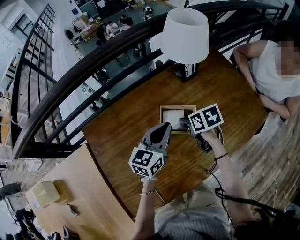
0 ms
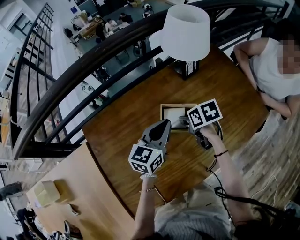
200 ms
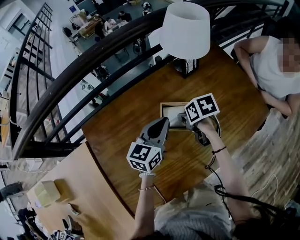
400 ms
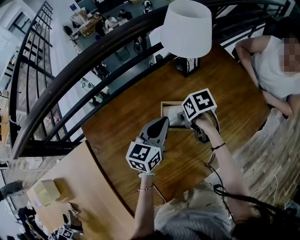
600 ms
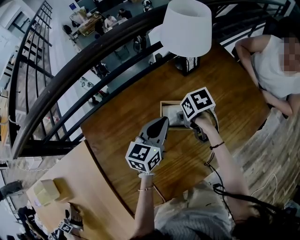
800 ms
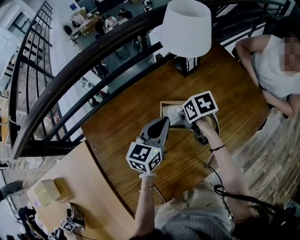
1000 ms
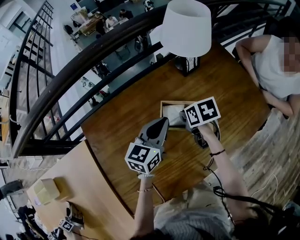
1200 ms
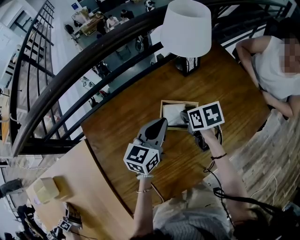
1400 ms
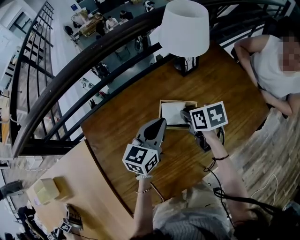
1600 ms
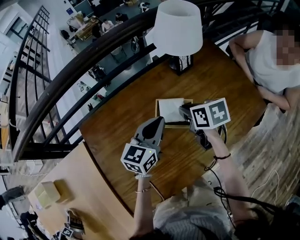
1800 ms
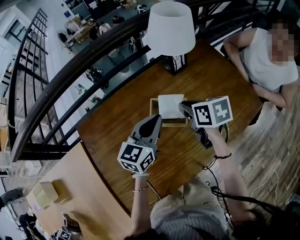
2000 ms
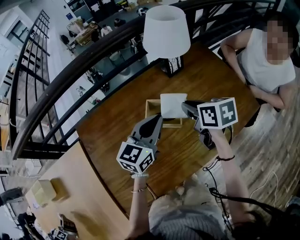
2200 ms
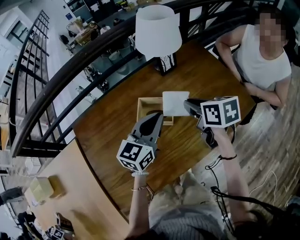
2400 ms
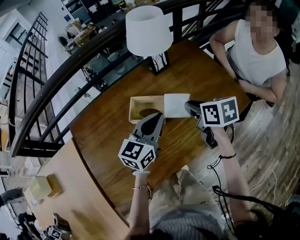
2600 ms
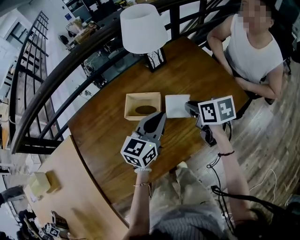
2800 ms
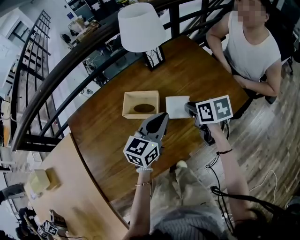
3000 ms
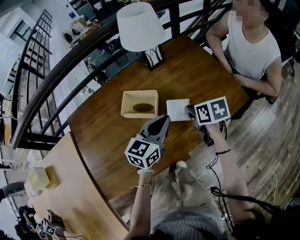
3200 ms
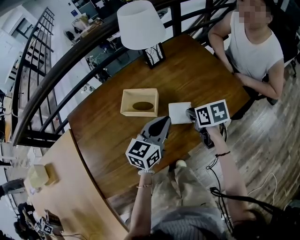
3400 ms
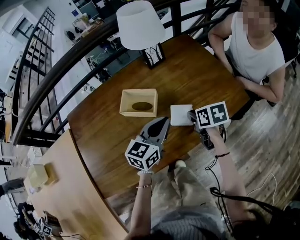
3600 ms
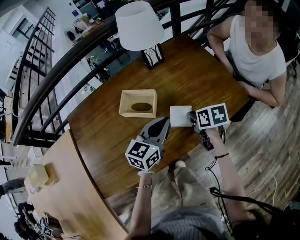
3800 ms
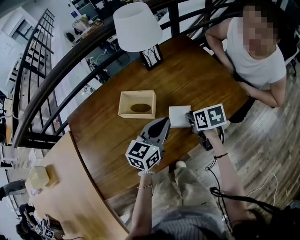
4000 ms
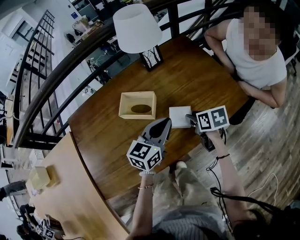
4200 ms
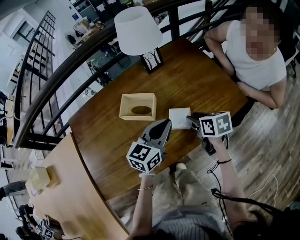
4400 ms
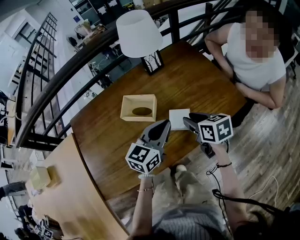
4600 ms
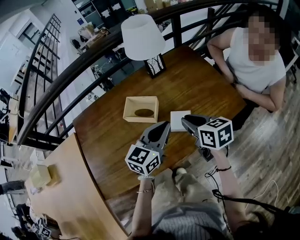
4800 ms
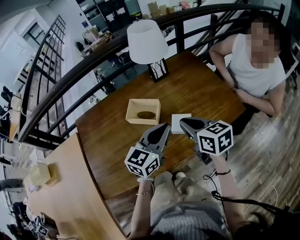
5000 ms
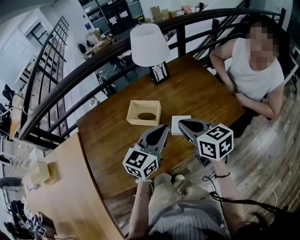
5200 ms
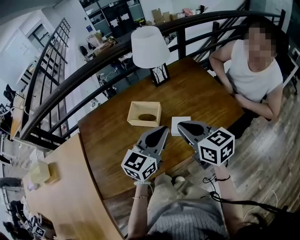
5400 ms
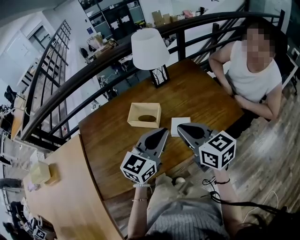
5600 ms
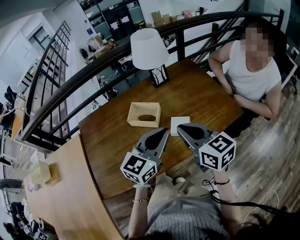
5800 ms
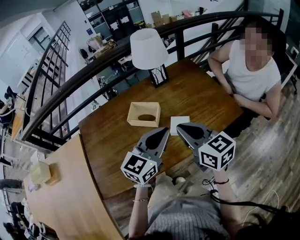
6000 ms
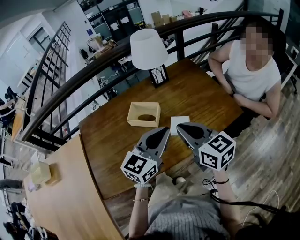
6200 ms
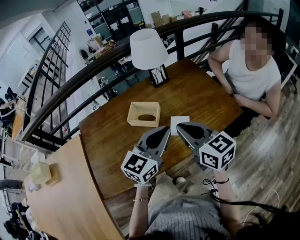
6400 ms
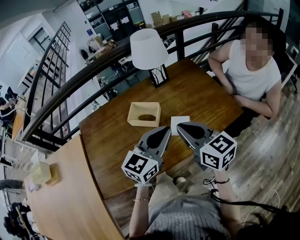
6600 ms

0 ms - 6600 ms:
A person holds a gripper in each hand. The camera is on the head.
0 ms - 1600 ms: The right gripper closes.
1600 ms - 3200 ms: Both grippers move to the right and backward, roughly 20 cm.
3200 ms - 5000 ms: The right gripper moves upward, about 10 cm, swivels approximately 30 degrees, and opens, then closes again; the left gripper shifts by some 5 cm.
5000 ms - 6600 ms: The left gripper shifts approximately 5 cm upward. The right gripper moves upward and backward, approximately 10 cm.

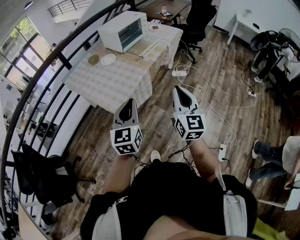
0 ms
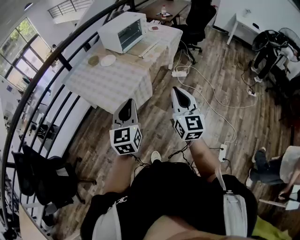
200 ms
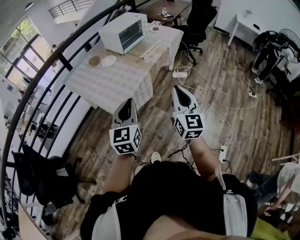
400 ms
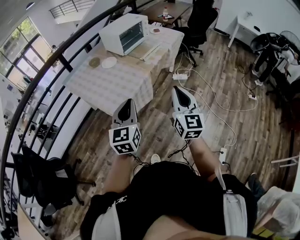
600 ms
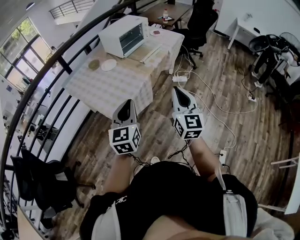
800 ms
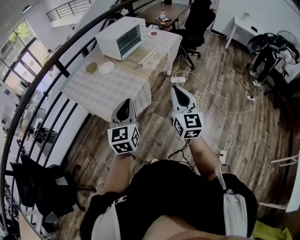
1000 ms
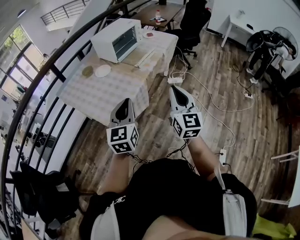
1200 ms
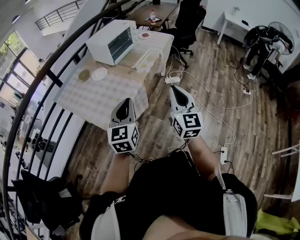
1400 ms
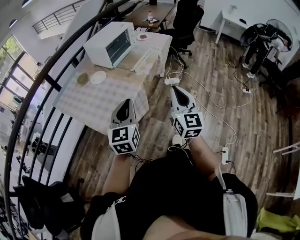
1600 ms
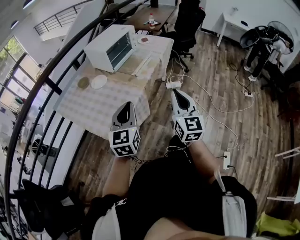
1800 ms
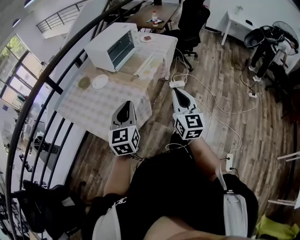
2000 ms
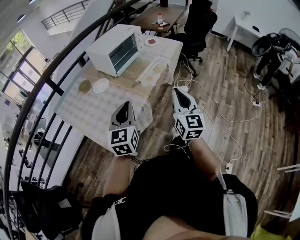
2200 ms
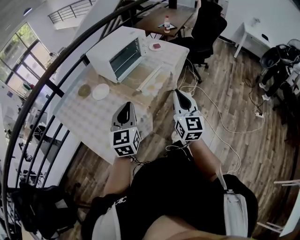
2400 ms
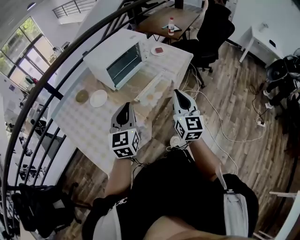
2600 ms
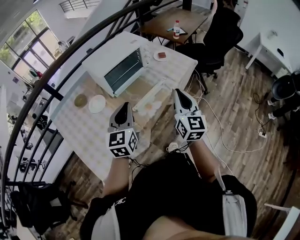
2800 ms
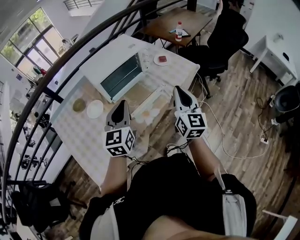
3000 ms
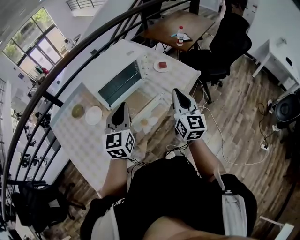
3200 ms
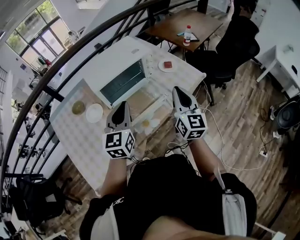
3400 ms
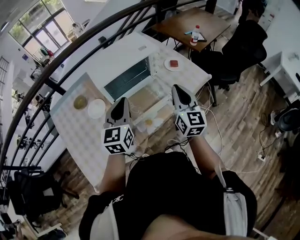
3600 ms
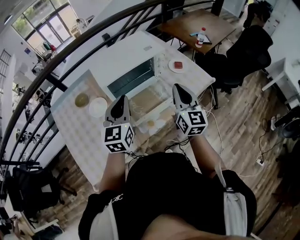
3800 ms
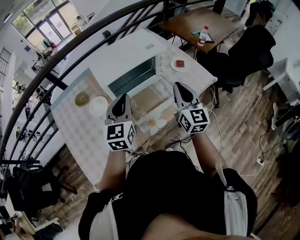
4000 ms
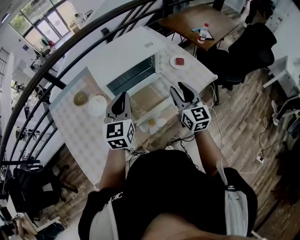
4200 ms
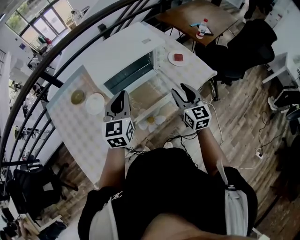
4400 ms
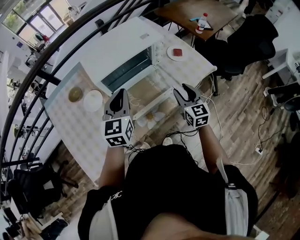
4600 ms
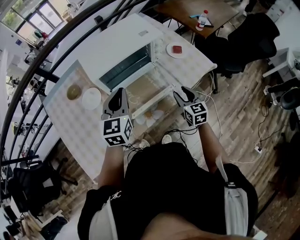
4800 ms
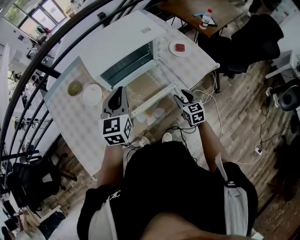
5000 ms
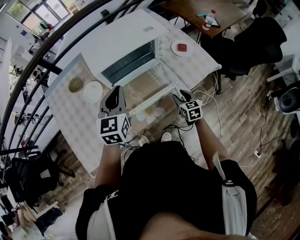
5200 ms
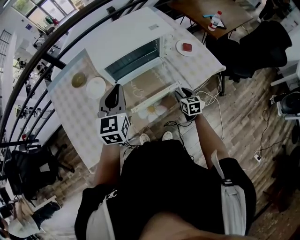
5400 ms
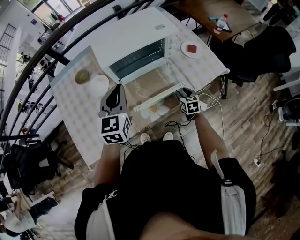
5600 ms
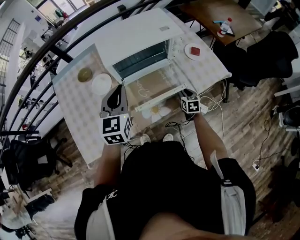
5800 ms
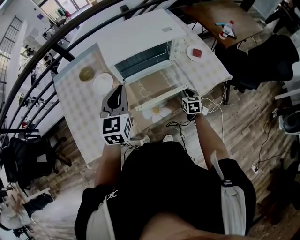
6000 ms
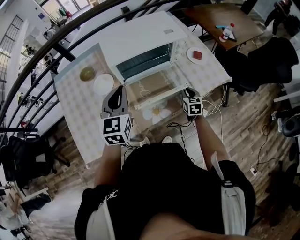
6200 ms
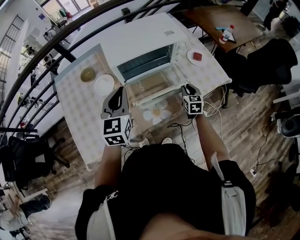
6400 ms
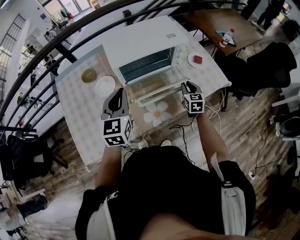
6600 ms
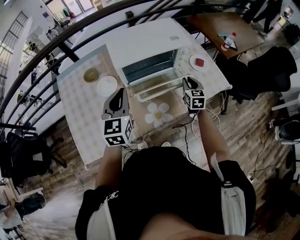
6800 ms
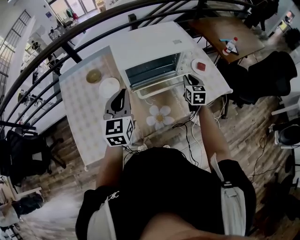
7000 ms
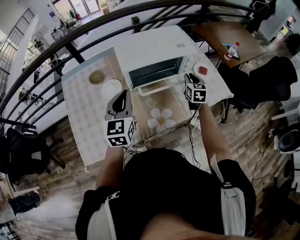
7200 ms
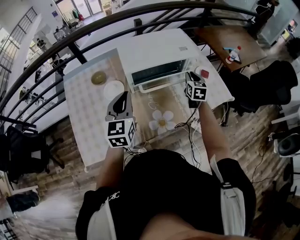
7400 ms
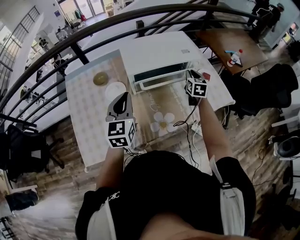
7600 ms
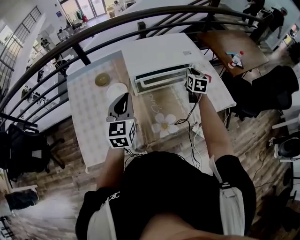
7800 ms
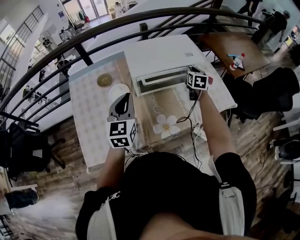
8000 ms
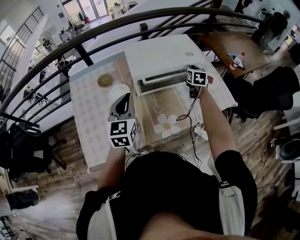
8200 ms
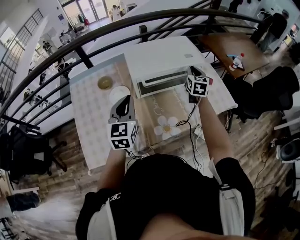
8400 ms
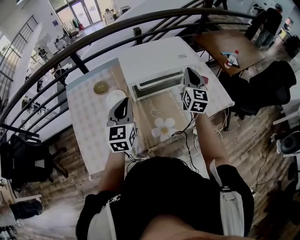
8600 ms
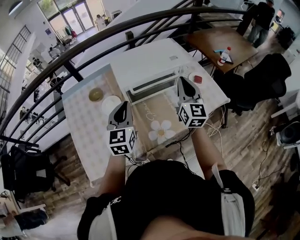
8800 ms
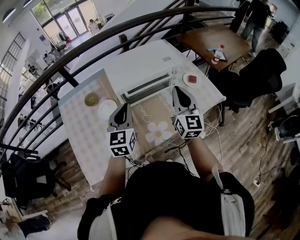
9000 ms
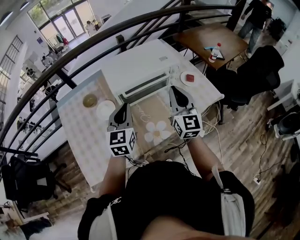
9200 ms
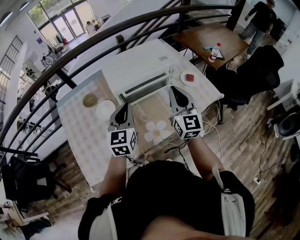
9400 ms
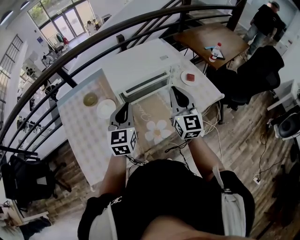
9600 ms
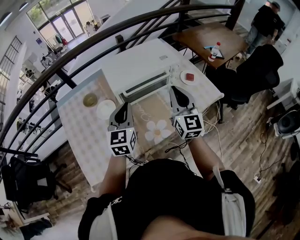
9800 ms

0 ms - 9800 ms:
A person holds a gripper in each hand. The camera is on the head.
0 ms - 1400 ms: The grippers both shift forward by approximately 10 cm.
1400 ms - 2800 ms: Both grippers travel together forward, approximately 40 cm.
2800 ms - 4200 ms: Both grippers move forward, approximately 20 cm. The right gripper rotates roughly 20 degrees, and opens up.
4200 ms - 5600 ms: The right gripper shifts some 30 cm downward, and tips its fingers downward by about 40 degrees.
5600 ms - 7000 ms: The right gripper heads upward and forward, covering roughly 20 cm, and closes, while the left gripper ends up some 5 cm from where it was.
7000 ms - 8400 ms: The right gripper goes about 10 cm upward and forward.
8400 ms - 9800 ms: The right gripper is displaced backward and upward by approximately 20 cm, and changes its angle by roughly 30 degrees. Meanwhile the left gripper travels to the right by some 5 cm.

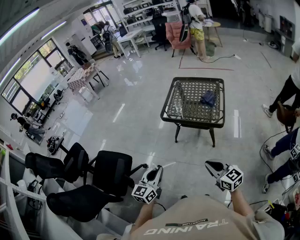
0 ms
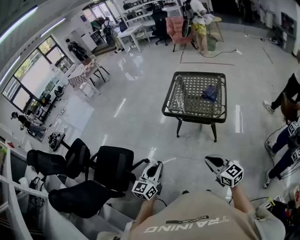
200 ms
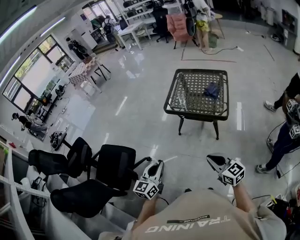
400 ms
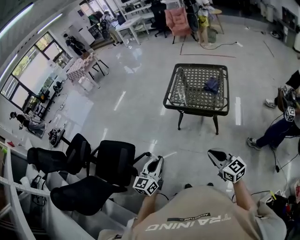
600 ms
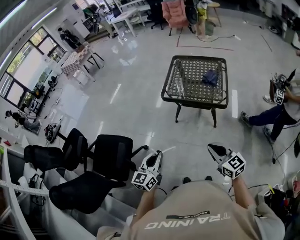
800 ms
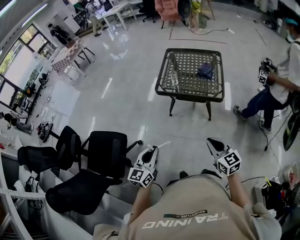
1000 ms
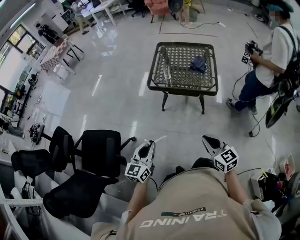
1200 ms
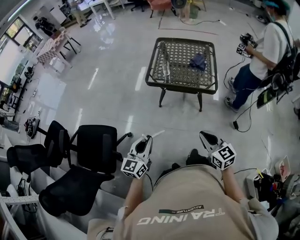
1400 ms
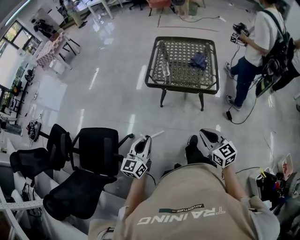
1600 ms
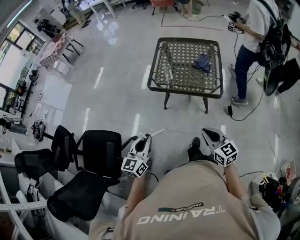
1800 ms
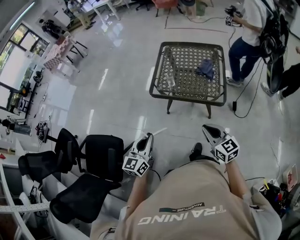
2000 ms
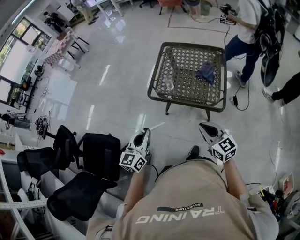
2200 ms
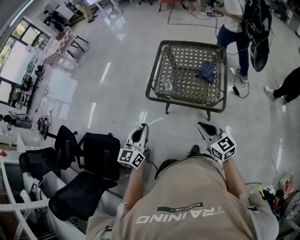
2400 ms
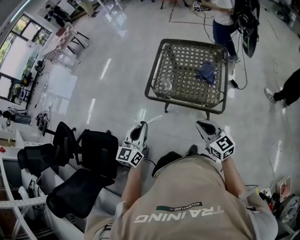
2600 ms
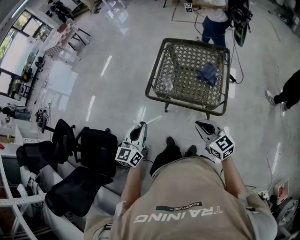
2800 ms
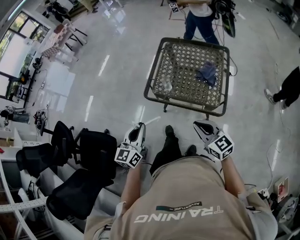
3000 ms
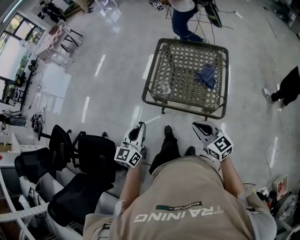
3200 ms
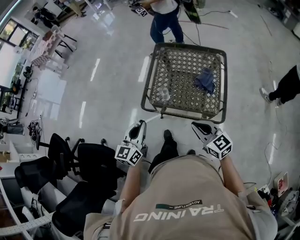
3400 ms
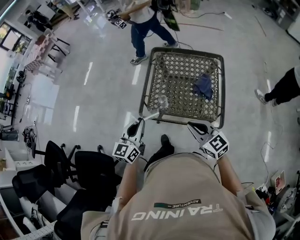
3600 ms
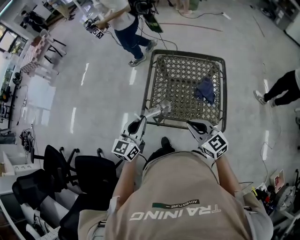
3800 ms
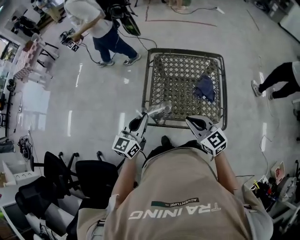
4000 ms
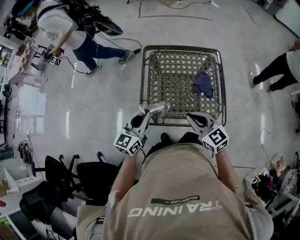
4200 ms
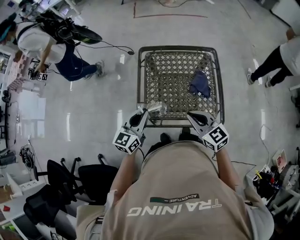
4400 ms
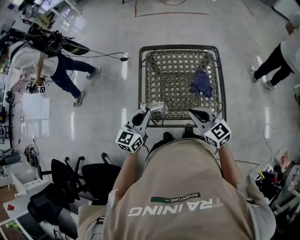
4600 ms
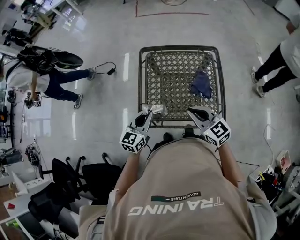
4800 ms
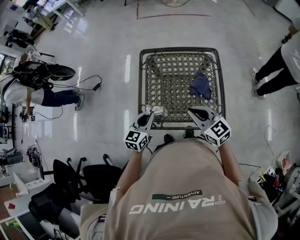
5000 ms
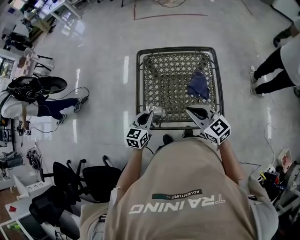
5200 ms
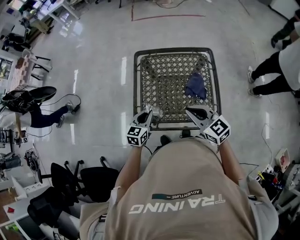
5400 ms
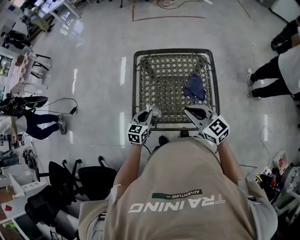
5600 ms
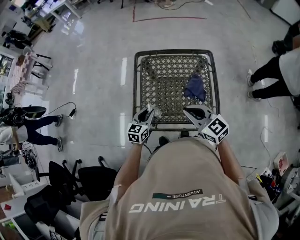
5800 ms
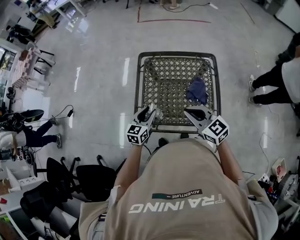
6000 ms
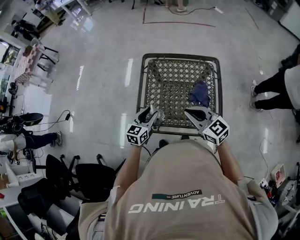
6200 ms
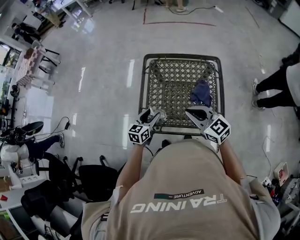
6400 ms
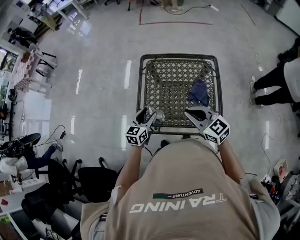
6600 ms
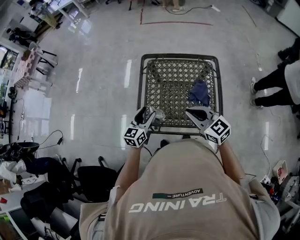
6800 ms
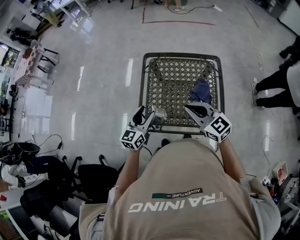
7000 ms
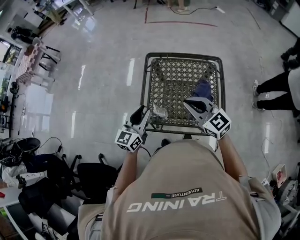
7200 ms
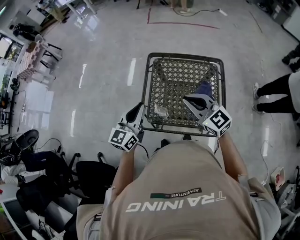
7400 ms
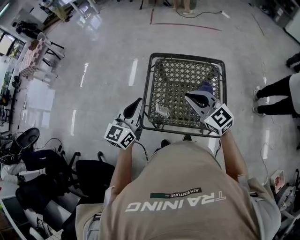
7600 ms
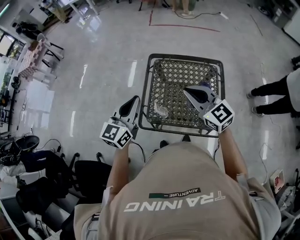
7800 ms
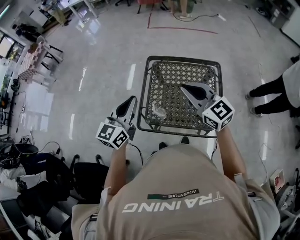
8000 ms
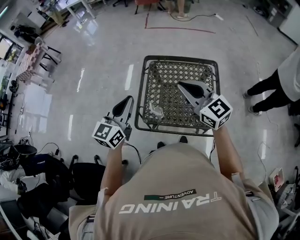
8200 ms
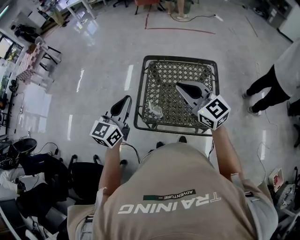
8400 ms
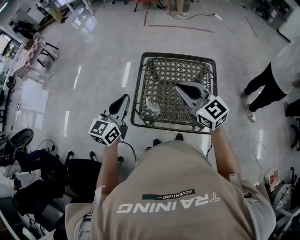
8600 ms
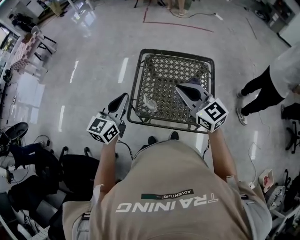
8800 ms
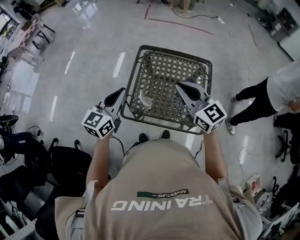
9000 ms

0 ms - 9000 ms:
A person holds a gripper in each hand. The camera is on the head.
0 ms - 1600 ms: The grippers both shift forward by roughly 10 cm.
1600 ms - 3000 ms: The right gripper shifts some 25 cm forward, while the left gripper shifts about 25 cm forward and to the right.
3000 ms - 4400 ms: Both grippers travel together forward, some 25 cm. The left gripper swivels approximately 30 degrees.
4400 ms - 6000 ms: The right gripper changes place by about 5 cm. The left gripper shifts roughly 10 cm downward and to the right, and opens.
6000 ms - 7600 ms: The left gripper travels upward by roughly 20 cm, rotates roughly 20 degrees, and closes. The right gripper heads upward and forward, covering roughly 10 cm.
7600 ms - 9000 ms: The right gripper moves some 5 cm.
